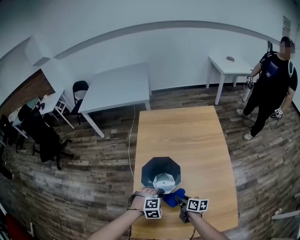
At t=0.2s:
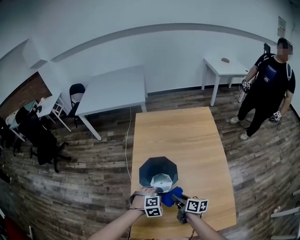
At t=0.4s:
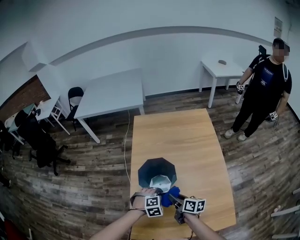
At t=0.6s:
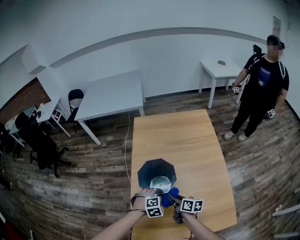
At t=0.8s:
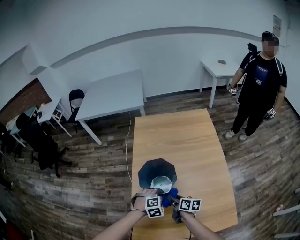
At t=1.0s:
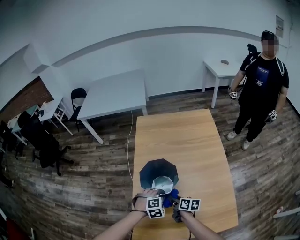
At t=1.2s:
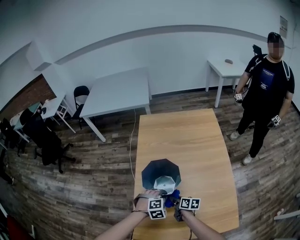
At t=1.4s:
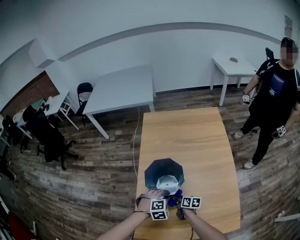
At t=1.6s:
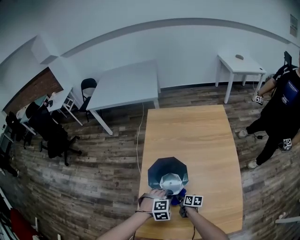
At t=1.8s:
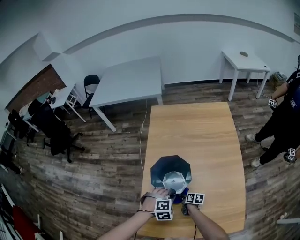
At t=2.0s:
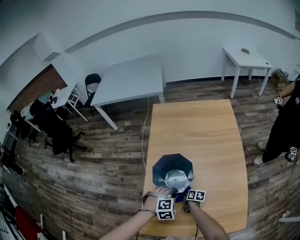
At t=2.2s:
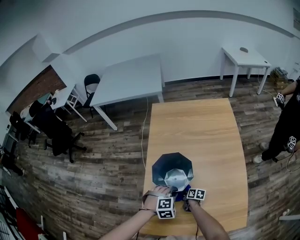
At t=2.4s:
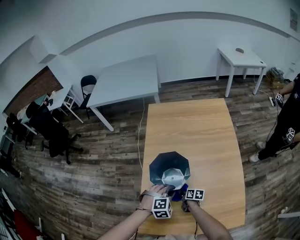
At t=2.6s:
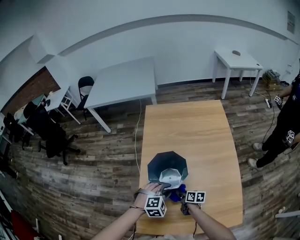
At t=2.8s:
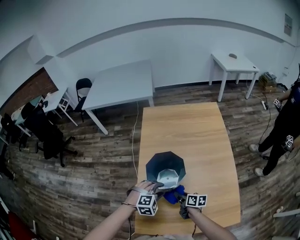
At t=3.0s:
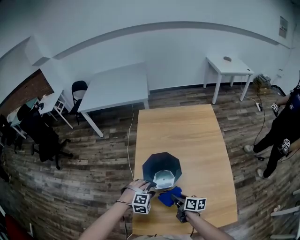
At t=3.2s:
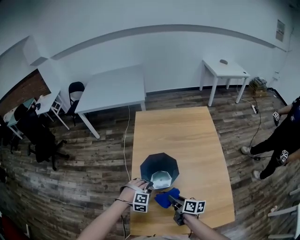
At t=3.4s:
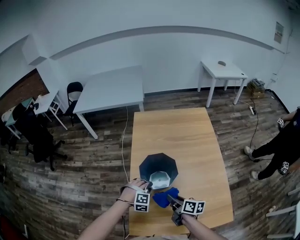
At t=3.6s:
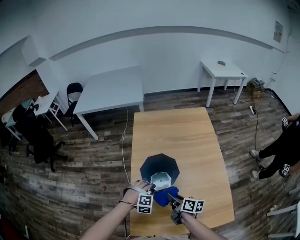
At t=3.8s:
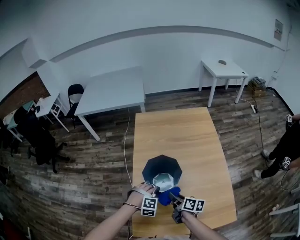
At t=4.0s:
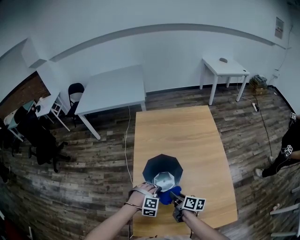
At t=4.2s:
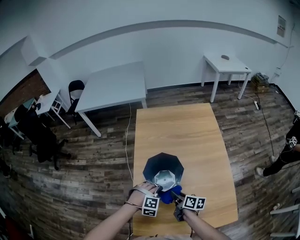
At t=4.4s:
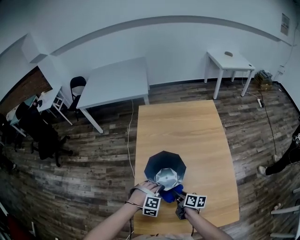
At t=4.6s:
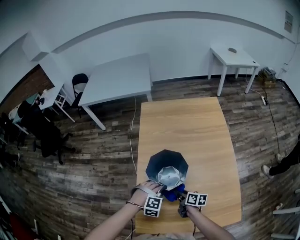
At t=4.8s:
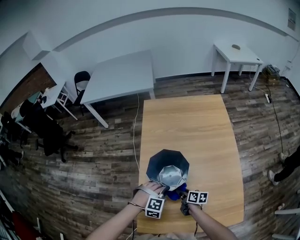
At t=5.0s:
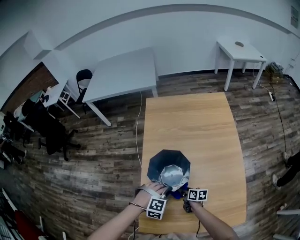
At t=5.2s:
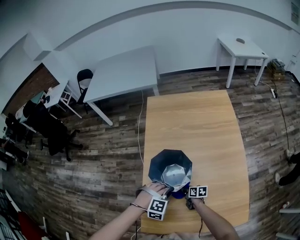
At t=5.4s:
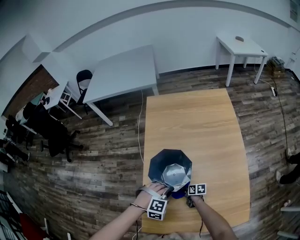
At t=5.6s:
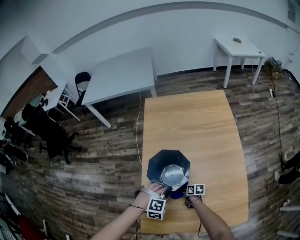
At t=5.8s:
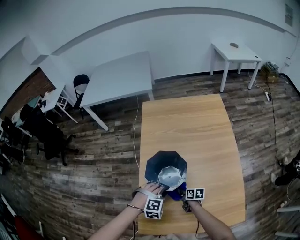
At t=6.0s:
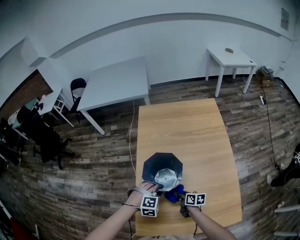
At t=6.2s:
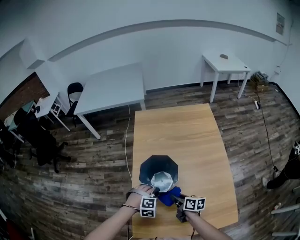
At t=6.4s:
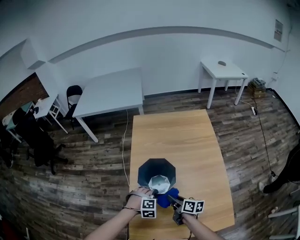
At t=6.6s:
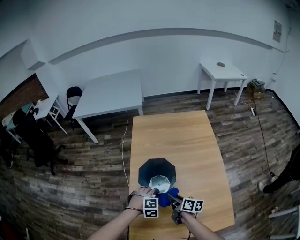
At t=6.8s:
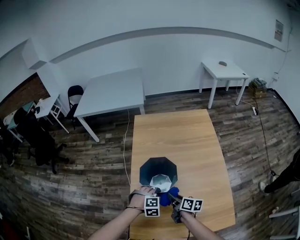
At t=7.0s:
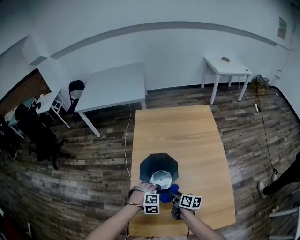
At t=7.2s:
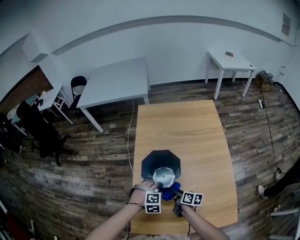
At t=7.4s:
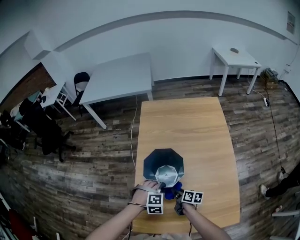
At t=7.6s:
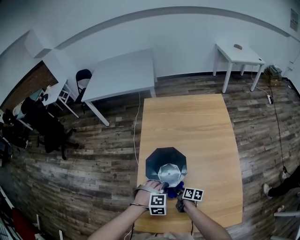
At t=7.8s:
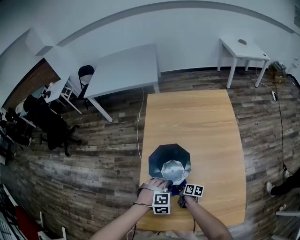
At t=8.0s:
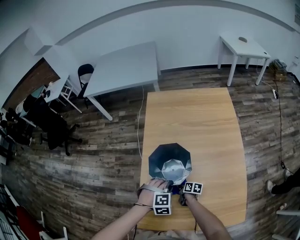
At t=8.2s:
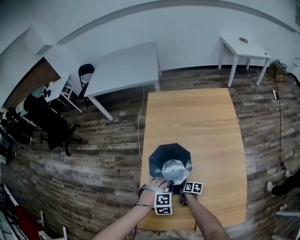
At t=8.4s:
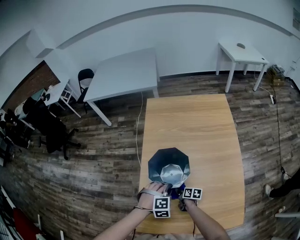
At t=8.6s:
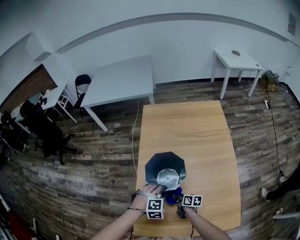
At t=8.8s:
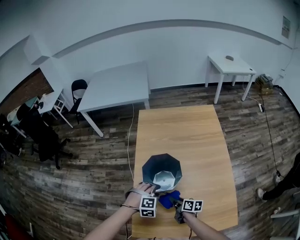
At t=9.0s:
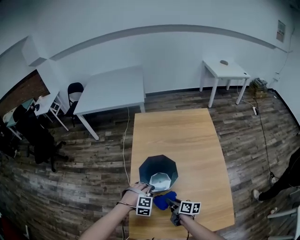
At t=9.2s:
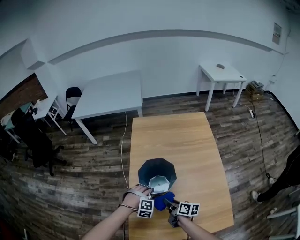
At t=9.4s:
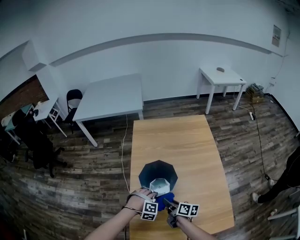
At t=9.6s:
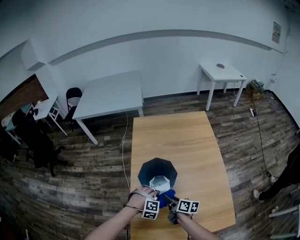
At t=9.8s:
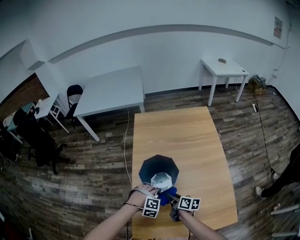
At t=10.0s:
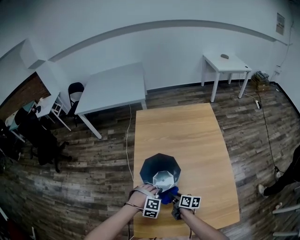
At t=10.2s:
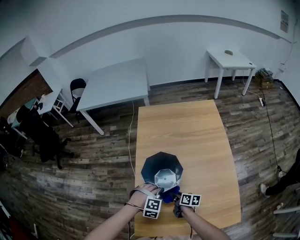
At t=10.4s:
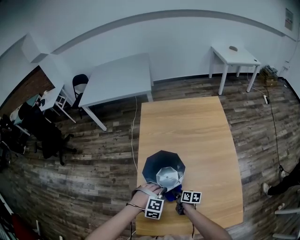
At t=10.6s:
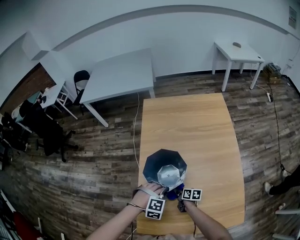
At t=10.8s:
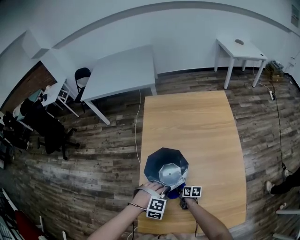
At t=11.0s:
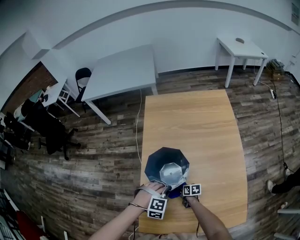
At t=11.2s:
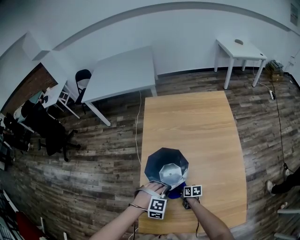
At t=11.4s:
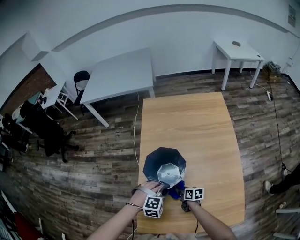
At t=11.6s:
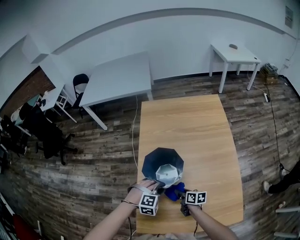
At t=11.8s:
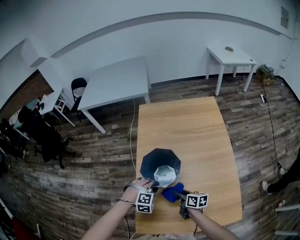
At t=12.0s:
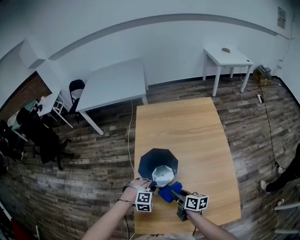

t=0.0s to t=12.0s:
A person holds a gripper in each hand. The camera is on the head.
t=0.0s to t=1.6s: The right gripper heads downward, covering about 10 cm.
t=1.6s to t=3.0s: The left gripper travels to the left by about 5 cm, and opens; the right gripper shifts about 15 cm upward.
t=3.0s to t=4.4s: The left gripper closes; the right gripper goes upward and returns, some 5 cm each way.
t=4.4s to t=6.0s: The right gripper reaches roughly 20 cm downward, then returns.
t=6.0s to t=7.6s: The right gripper moves approximately 10 cm upward and comes back.
t=7.6s to t=9.0s: The left gripper opens its fingers. The right gripper goes some 15 cm upward.
t=9.0s to t=10.4s: The left gripper closes. The right gripper shifts some 15 cm downward.
t=10.4s to t=12.0s: The right gripper is displaced upward by approximately 15 cm.

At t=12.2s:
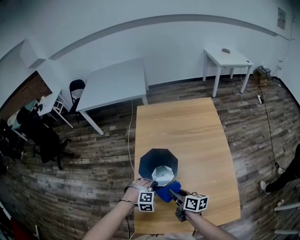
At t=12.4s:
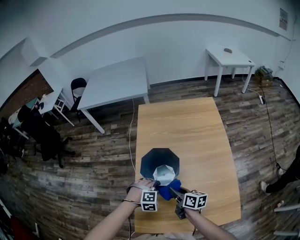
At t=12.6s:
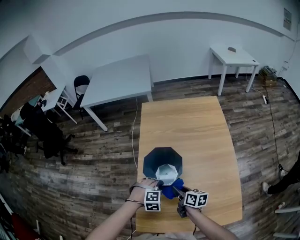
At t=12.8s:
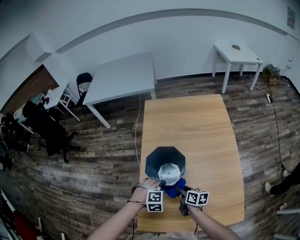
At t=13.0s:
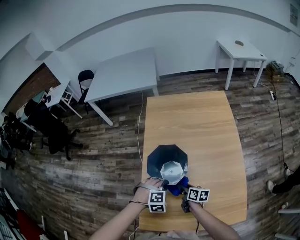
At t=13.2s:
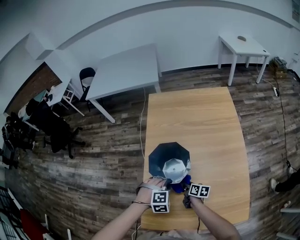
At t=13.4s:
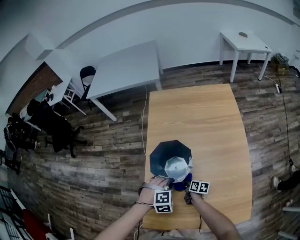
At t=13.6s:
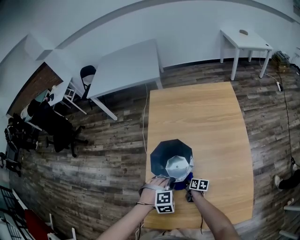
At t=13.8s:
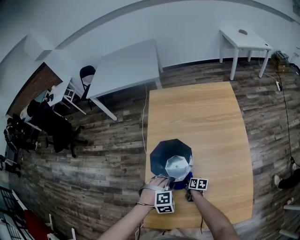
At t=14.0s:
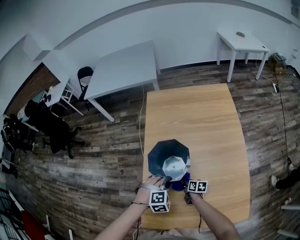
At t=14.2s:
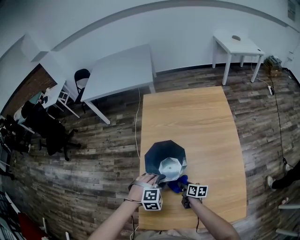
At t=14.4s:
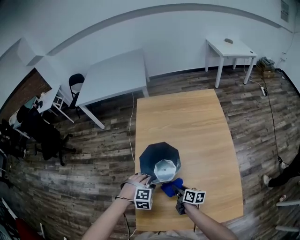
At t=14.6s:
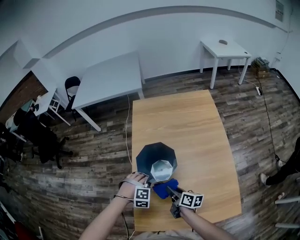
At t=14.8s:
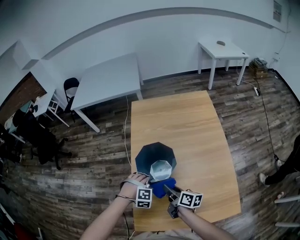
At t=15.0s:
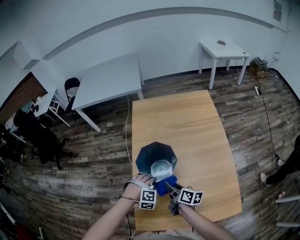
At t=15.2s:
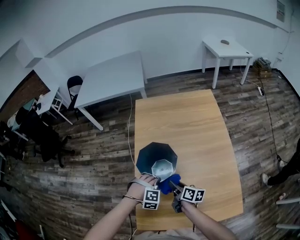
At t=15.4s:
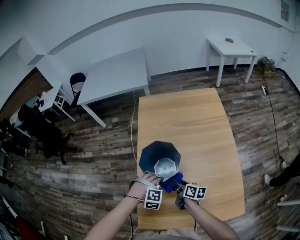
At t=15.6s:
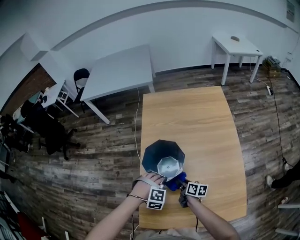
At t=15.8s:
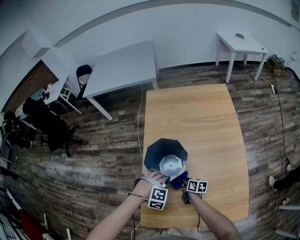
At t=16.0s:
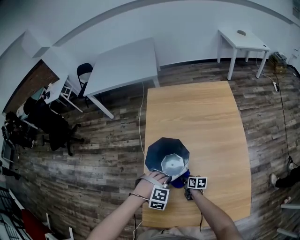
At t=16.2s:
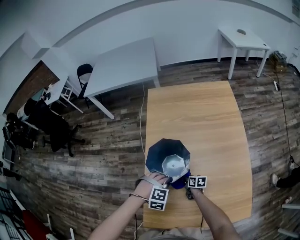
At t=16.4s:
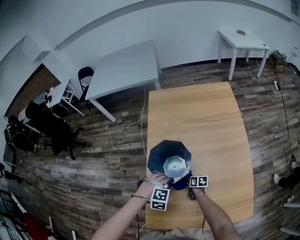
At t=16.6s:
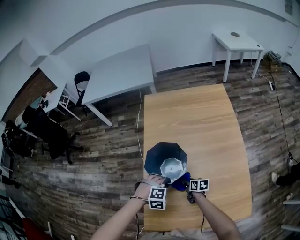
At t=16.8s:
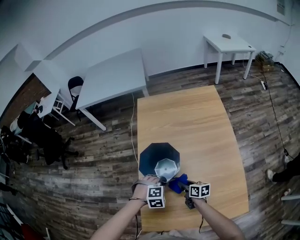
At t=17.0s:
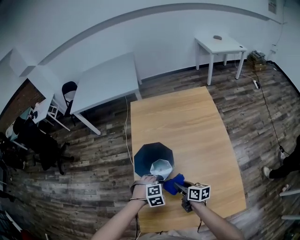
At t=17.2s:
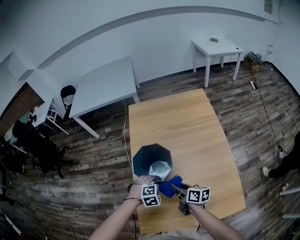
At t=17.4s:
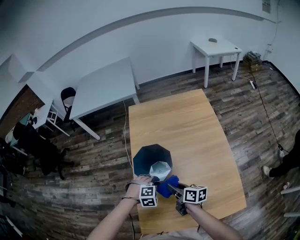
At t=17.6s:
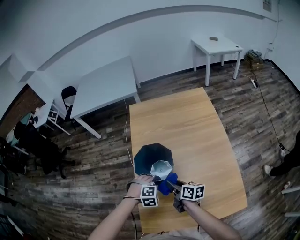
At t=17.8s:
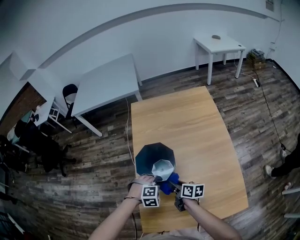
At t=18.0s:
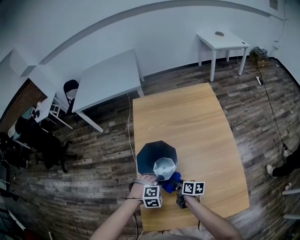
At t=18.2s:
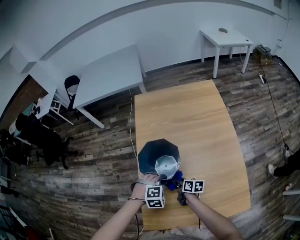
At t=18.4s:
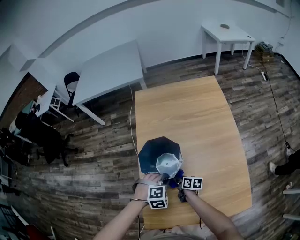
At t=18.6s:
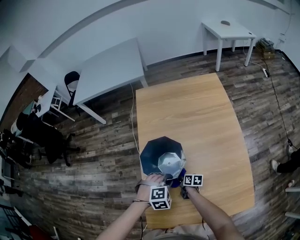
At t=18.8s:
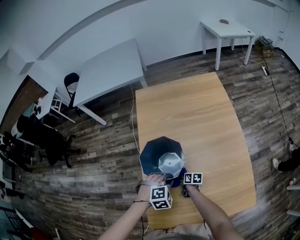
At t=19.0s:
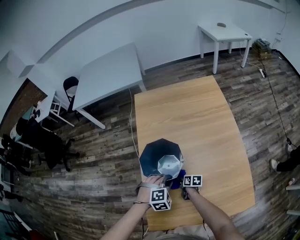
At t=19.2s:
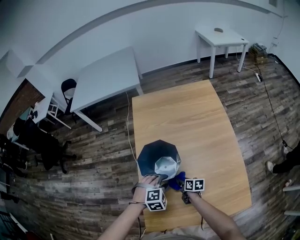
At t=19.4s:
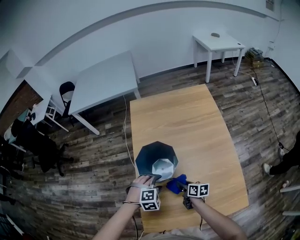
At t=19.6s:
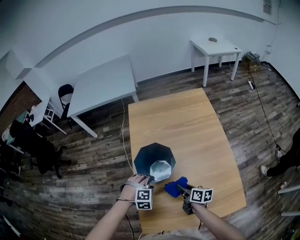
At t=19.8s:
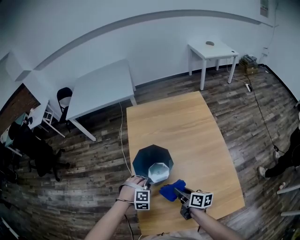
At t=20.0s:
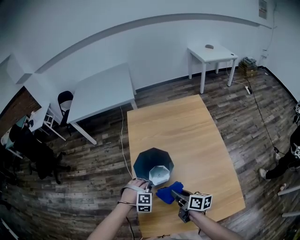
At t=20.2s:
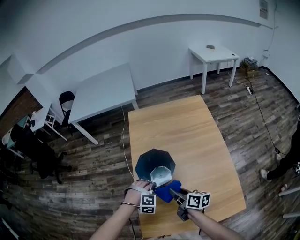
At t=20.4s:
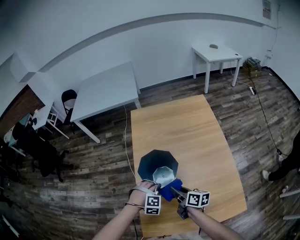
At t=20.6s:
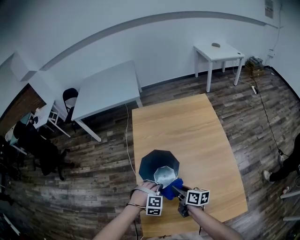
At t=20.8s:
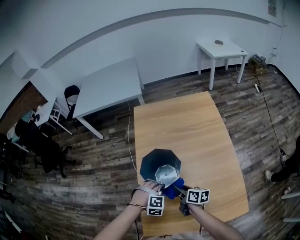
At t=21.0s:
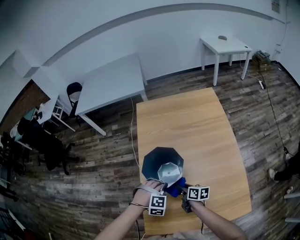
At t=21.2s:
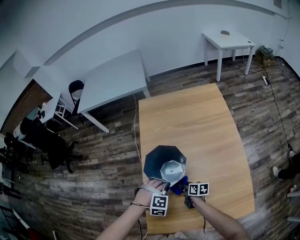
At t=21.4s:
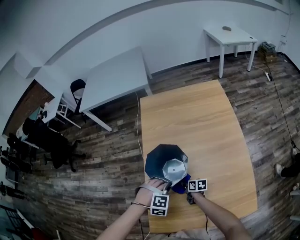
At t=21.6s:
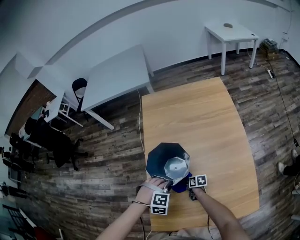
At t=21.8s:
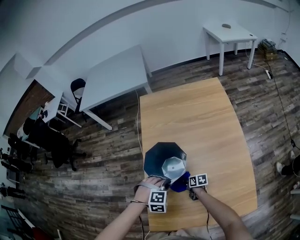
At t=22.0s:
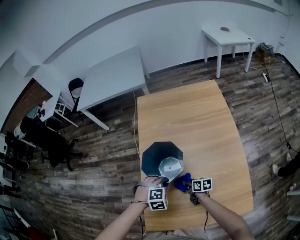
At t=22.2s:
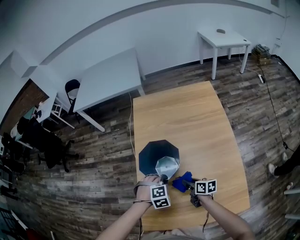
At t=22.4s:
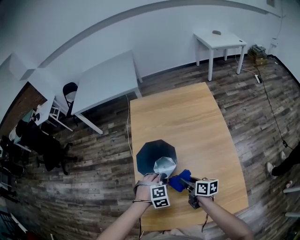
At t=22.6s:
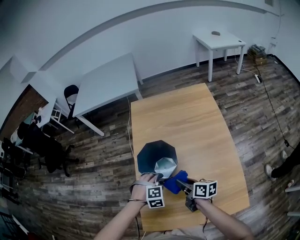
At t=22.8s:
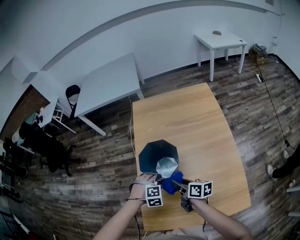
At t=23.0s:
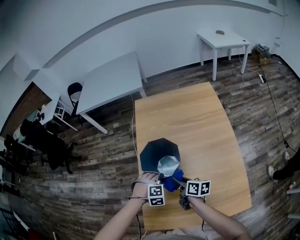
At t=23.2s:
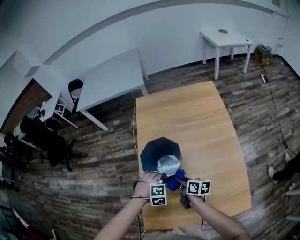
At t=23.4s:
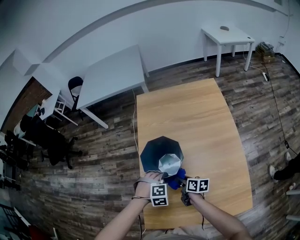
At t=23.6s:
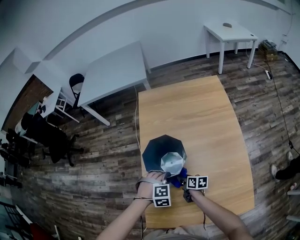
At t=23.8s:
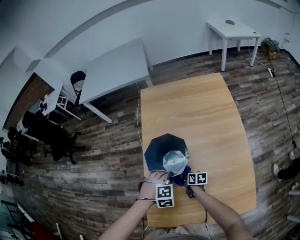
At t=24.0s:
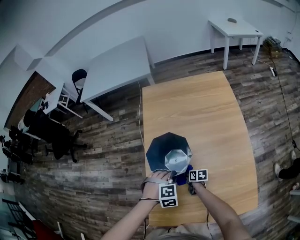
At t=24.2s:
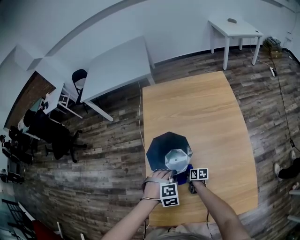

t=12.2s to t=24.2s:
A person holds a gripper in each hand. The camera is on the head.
t=12.2s to t=13.8s: The right gripper goes roughly 30 cm downward, and turns by approximately 20 degrees.
t=13.8s to t=15.2s: The right gripper heads upward, covering about 25 cm, and swivels approximately 20 degrees. The left gripper swivels about 20 degrees, and opens, then closes once more.
t=15.2s to t=16.6s: The right gripper shifts about 20 cm downward, and changes its angle by some 20 degrees.
t=16.6s to t=18.2s: The right gripper goes upward and returns, approximately 20 cm each way.
t=18.2s to t=19.8s: The right gripper heads upward and backward, covering some 15 cm. The left gripper heads to the left, covering approximately 5 cm, and opens, then closes again.
t=19.8s to t=21.2s: The right gripper is displaced downward by roughly 15 cm, while the left gripper goes some 5 cm to the right.
t=21.2s to t=22.6s: The right gripper is displaced upward by some 15 cm.
t=22.6s to t=24.2s: The right gripper travels downward by approximately 25 cm, and turns by about 20 degrees.
